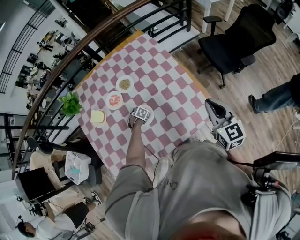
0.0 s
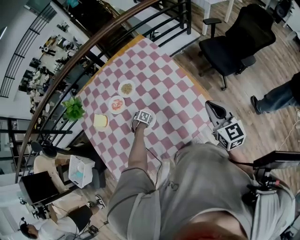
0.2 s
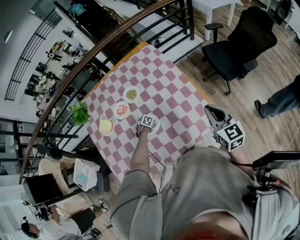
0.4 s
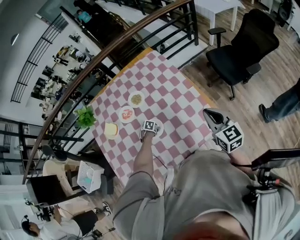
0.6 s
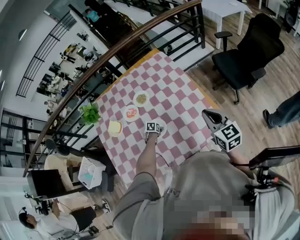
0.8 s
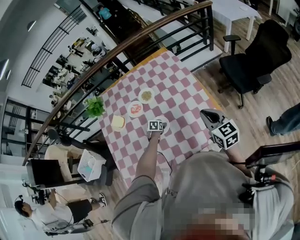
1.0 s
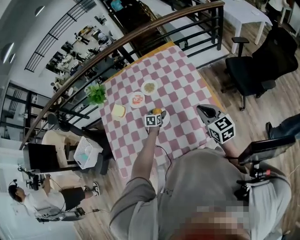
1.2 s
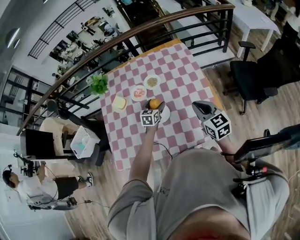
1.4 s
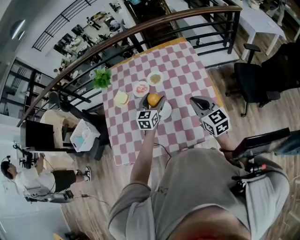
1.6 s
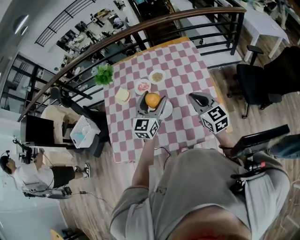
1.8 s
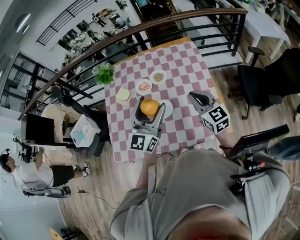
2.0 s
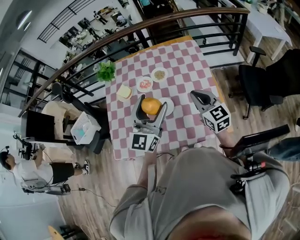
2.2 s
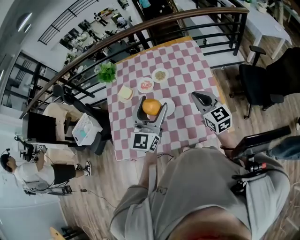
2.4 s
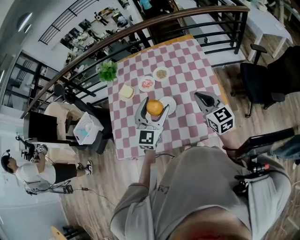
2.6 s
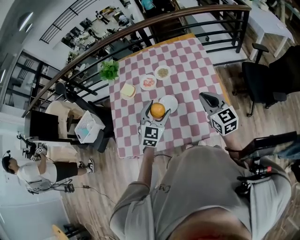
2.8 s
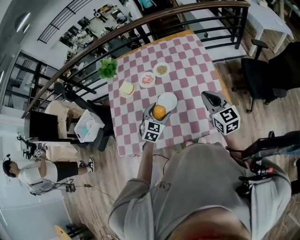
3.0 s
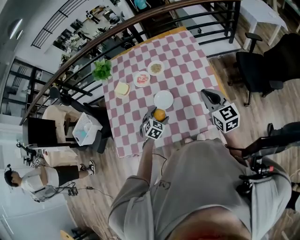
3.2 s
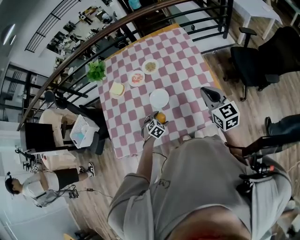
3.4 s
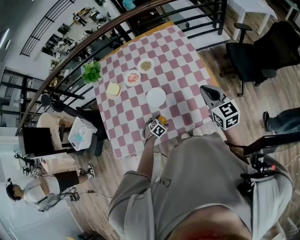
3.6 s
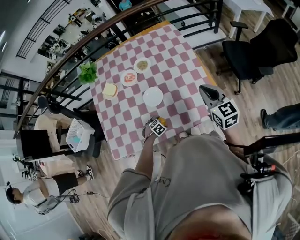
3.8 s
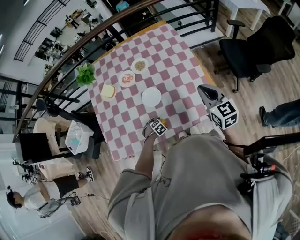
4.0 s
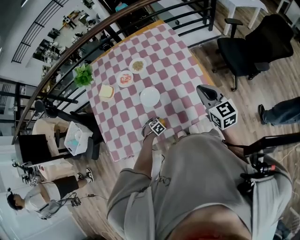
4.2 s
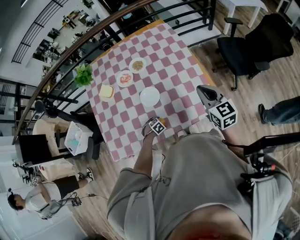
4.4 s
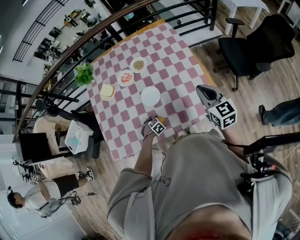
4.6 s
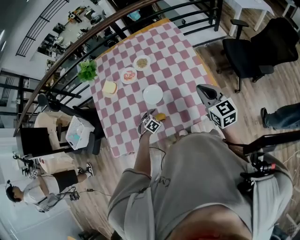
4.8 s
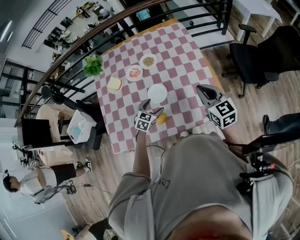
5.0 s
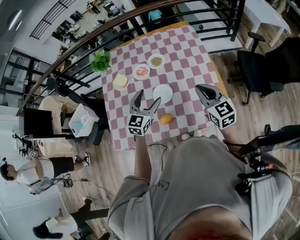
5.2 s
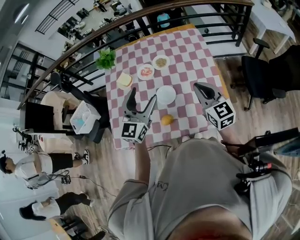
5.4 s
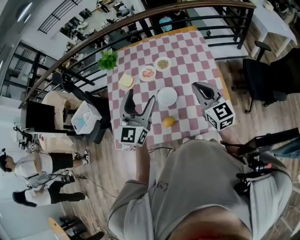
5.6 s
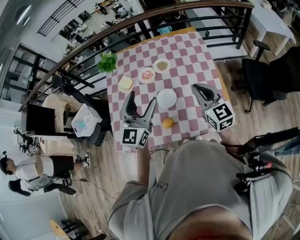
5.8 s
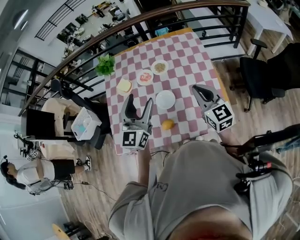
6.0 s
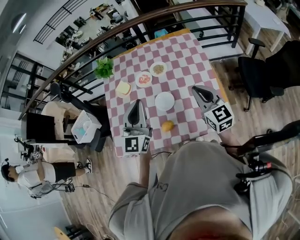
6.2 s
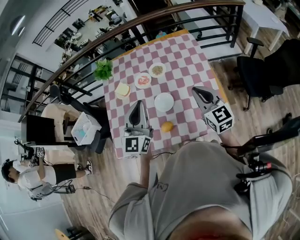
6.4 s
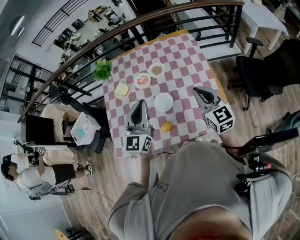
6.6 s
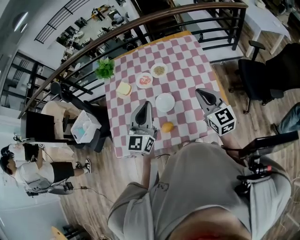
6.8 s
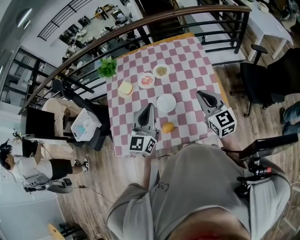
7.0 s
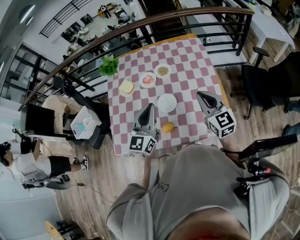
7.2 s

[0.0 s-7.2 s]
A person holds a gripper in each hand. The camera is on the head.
0.0 to 1.4 s: The right gripper changes place by approximately 10 cm, and turns by roughly 30 degrees; the left gripper shifts roughly 25 cm upward, and tilts its fingers roughly 50 degrees upward.
1.4 to 2.8 s: The left gripper goes some 20 cm upward and backward, and swivels roughly 30 degrees.
2.8 to 4.4 s: The left gripper heads downward, covering approximately 40 cm, and points its fingers approximately 60 degrees further downward. The right gripper shifts by approximately 10 cm.
4.4 to 5.8 s: The right gripper shifts by about 10 cm. Meanwhile the left gripper shifts roughly 50 cm upward, and angles its fingers upward, by some 80 degrees.
5.8 to 7.2 s: The left gripper closes up.

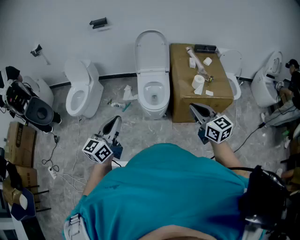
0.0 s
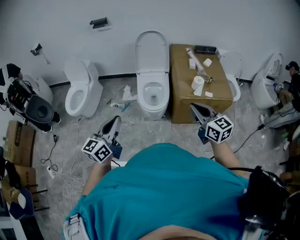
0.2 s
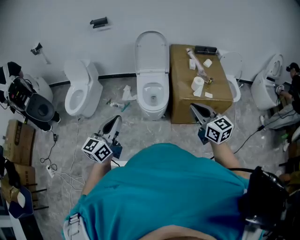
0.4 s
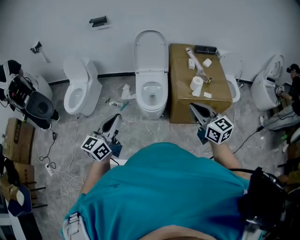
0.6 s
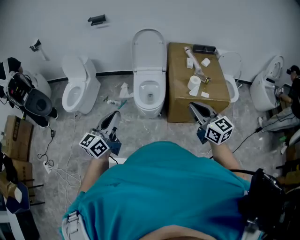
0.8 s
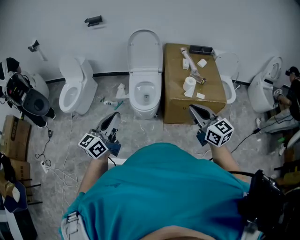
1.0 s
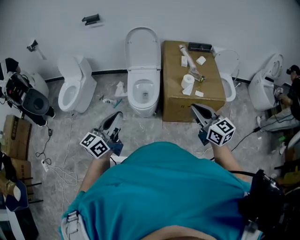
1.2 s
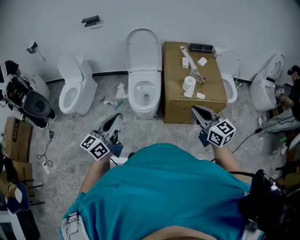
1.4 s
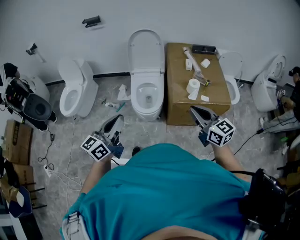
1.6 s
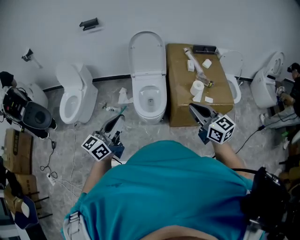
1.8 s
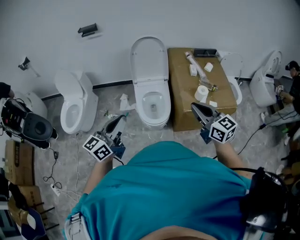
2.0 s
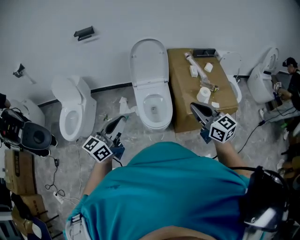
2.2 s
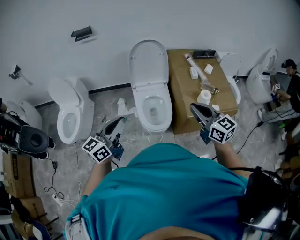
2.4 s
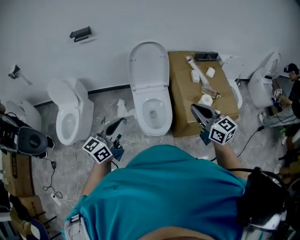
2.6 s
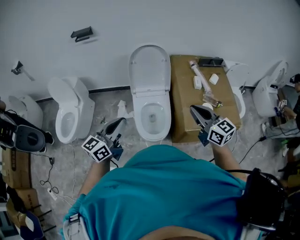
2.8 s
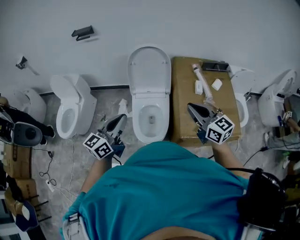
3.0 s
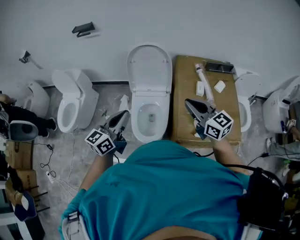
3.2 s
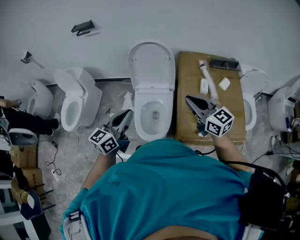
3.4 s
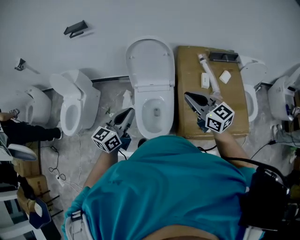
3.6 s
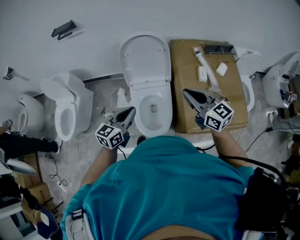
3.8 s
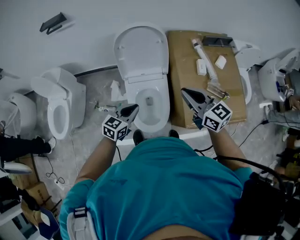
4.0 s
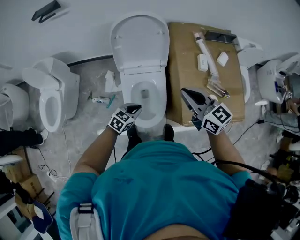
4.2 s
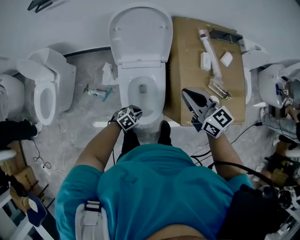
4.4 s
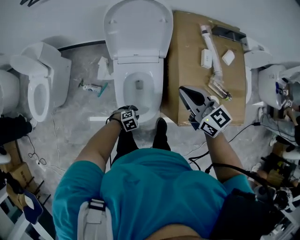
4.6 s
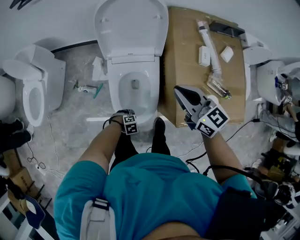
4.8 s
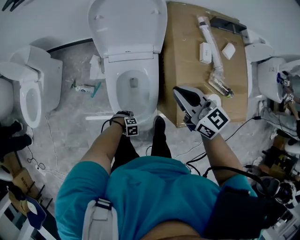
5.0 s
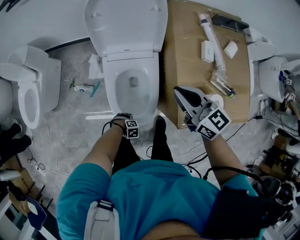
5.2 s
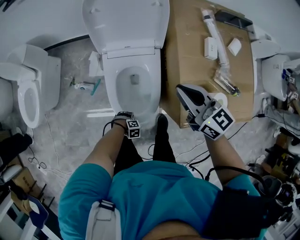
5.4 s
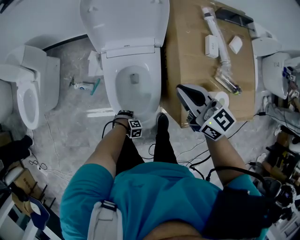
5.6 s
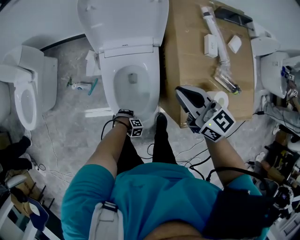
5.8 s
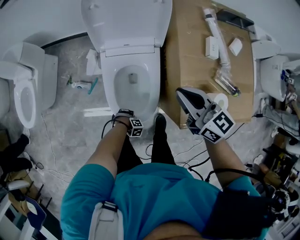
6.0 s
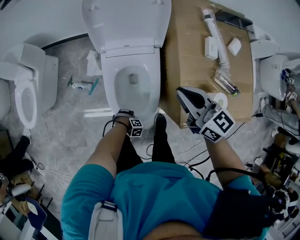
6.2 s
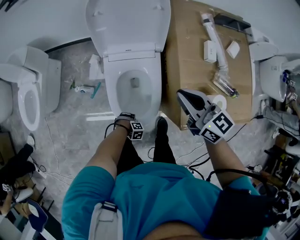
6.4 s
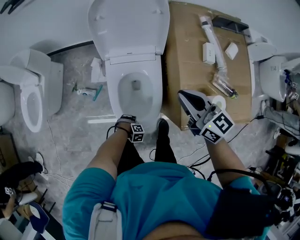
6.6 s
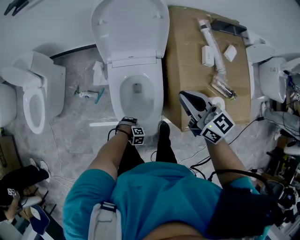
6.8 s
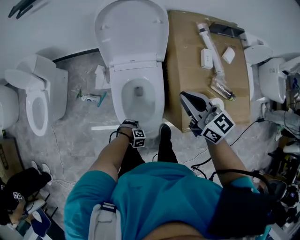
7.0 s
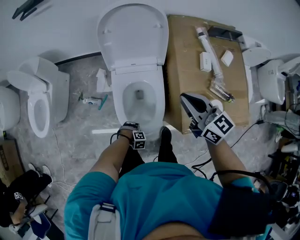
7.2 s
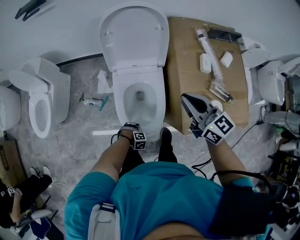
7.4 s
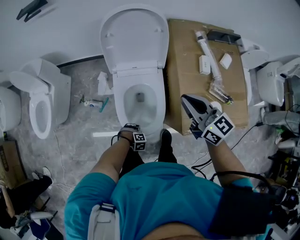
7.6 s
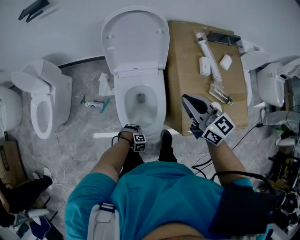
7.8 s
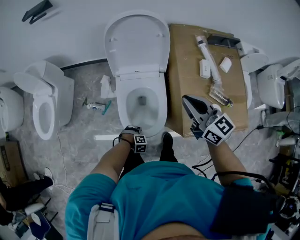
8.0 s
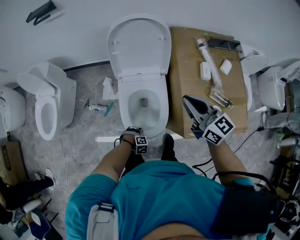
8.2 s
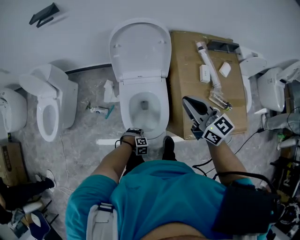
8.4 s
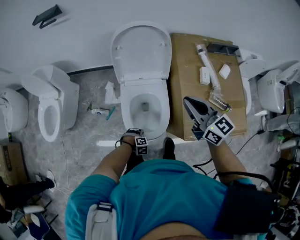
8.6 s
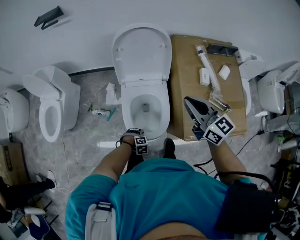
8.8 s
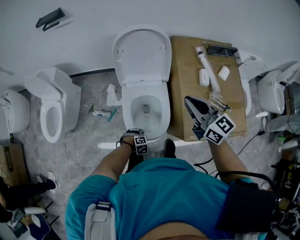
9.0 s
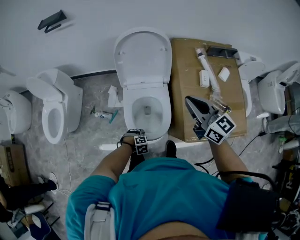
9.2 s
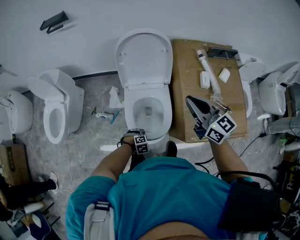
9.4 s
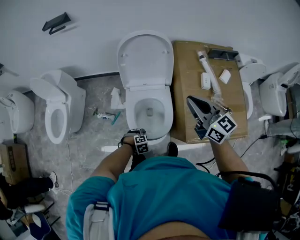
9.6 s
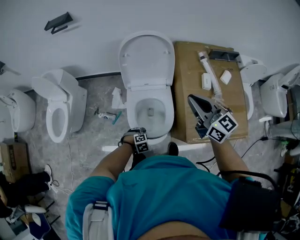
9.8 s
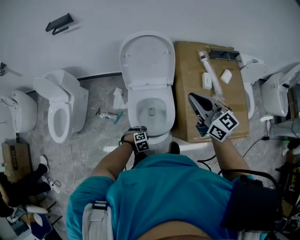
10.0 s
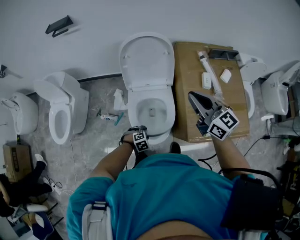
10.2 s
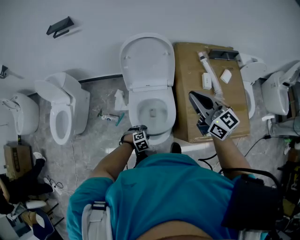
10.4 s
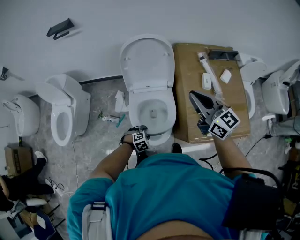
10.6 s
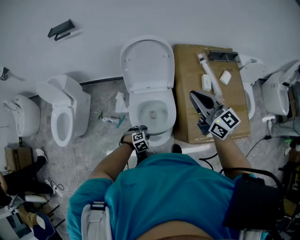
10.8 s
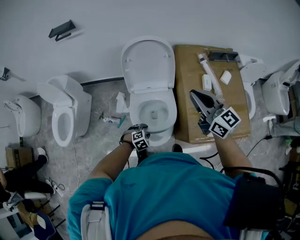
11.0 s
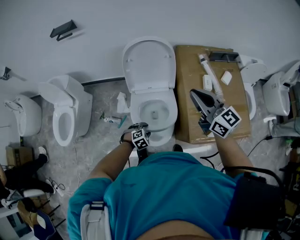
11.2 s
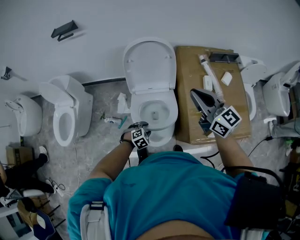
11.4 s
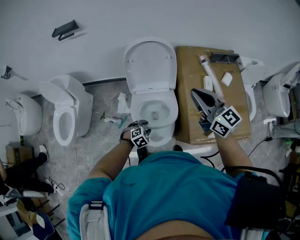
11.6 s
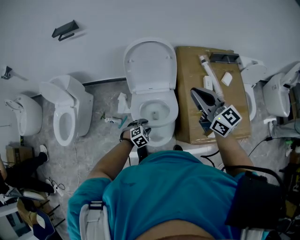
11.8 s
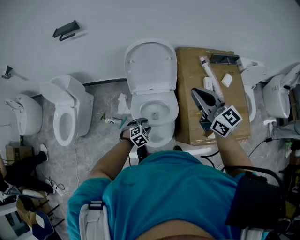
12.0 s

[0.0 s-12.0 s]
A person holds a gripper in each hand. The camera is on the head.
0.0 to 1.6 s: The grippers both shift to the right and forward by some 10 cm.
1.6 to 3.0 s: Both grippers travel together forward, some 35 cm.
3.0 to 4.4 s: The left gripper moves downward, some 50 cm, and tilts its fingers some 60 degrees downward; the right gripper ends up about 20 cm from where it was.
4.4 to 6.0 s: The left gripper moves downward, approximately 25 cm, turns by about 60 degrees, and opens. The right gripper heads downward, covering about 10 cm.
6.0 to 7.6 s: The grippers both shift upward by about 10 cm.
7.6 to 9.0 s: Both grippers travel together upward, approximately 10 cm.
9.0 to 10.4 s: The left gripper travels upward by about 10 cm; the right gripper shifts by approximately 5 cm.
10.4 to 12.0 s: The left gripper shifts some 10 cm upward and forward.

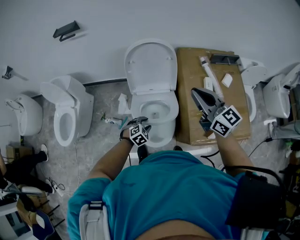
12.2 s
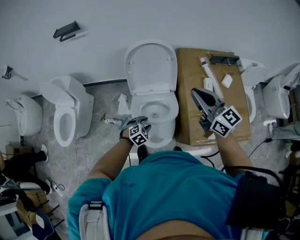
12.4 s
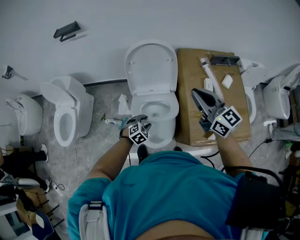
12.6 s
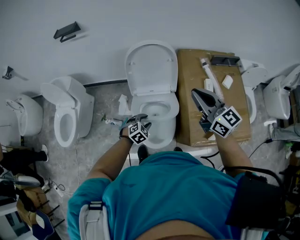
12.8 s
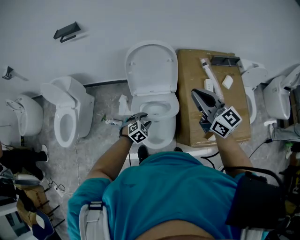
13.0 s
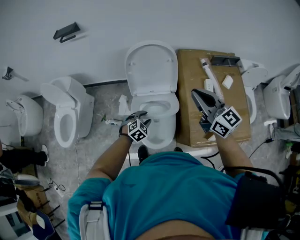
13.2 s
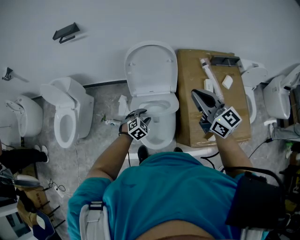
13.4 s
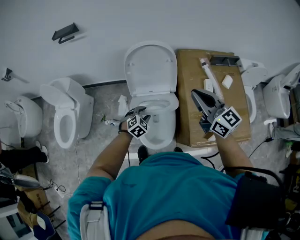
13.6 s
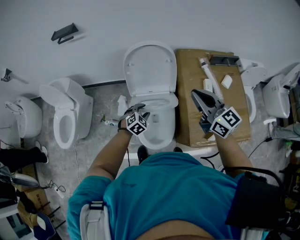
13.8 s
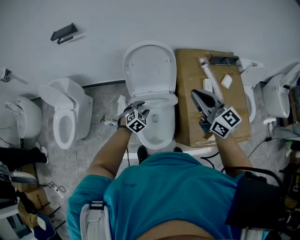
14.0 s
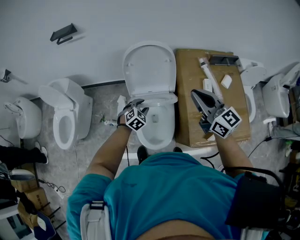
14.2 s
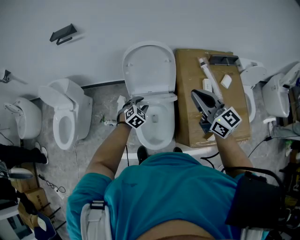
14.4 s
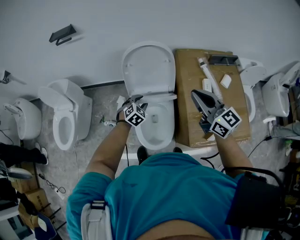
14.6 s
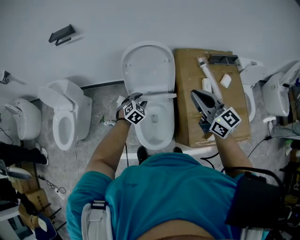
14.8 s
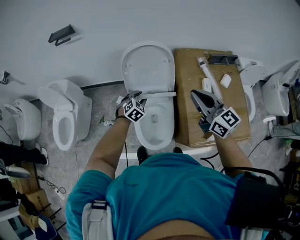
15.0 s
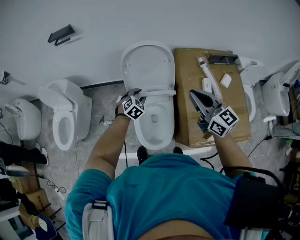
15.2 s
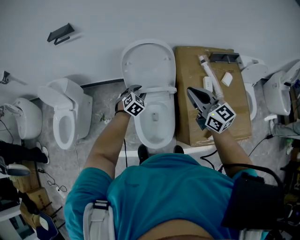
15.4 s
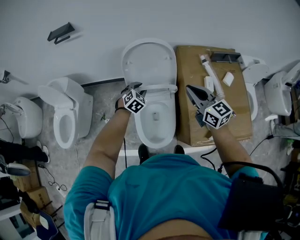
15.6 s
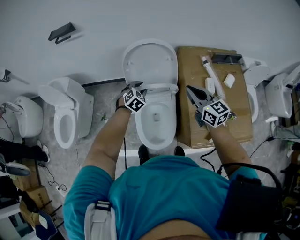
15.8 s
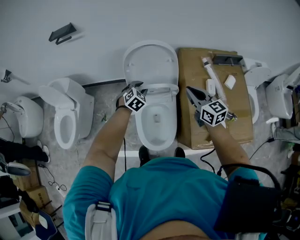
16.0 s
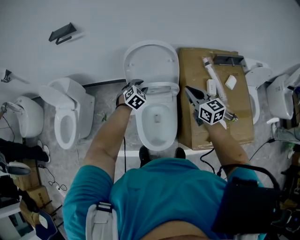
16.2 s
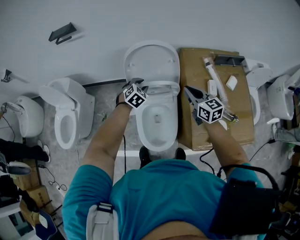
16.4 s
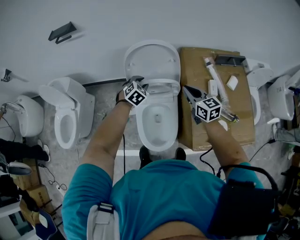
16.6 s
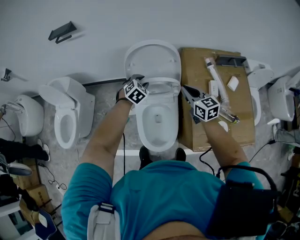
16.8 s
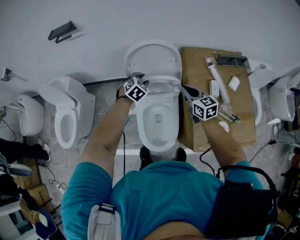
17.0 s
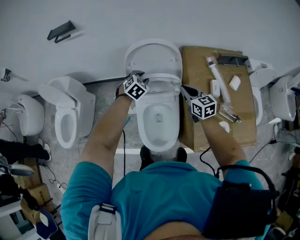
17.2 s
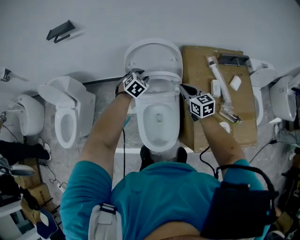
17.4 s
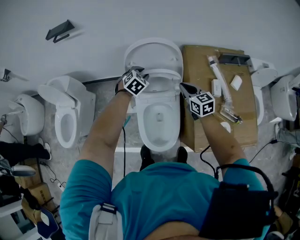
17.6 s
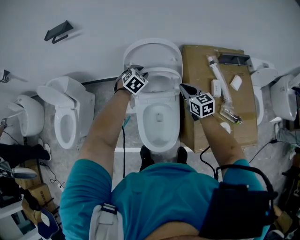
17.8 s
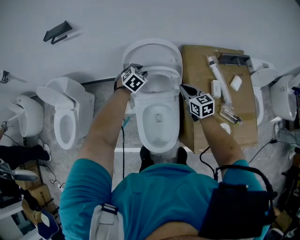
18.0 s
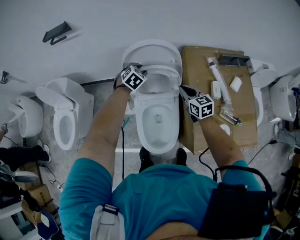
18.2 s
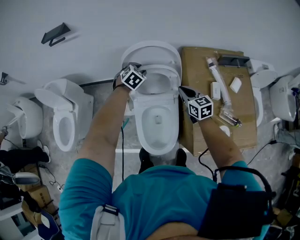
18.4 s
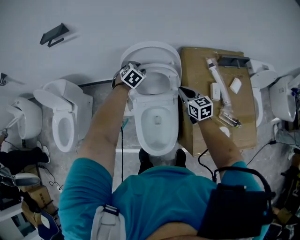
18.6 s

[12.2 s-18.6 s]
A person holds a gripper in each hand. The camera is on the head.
12.2 to 13.8 s: The left gripper heads forward and upward, covering about 10 cm.
13.8 to 15.4 s: The left gripper shifts about 10 cm forward. The right gripper ends up approximately 5 cm from where it was.
15.4 to 17.0 s: The right gripper travels downward and forward by approximately 15 cm; the left gripper shifts roughly 10 cm forward.
17.0 to 18.6 s: The right gripper is displaced downward by some 5 cm, while the left gripper moves forward, approximately 10 cm.
